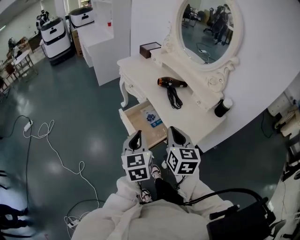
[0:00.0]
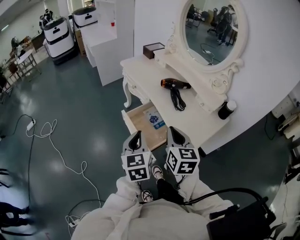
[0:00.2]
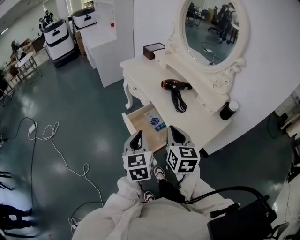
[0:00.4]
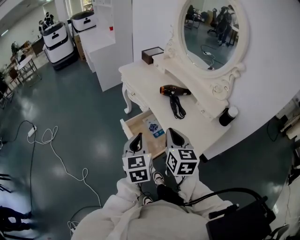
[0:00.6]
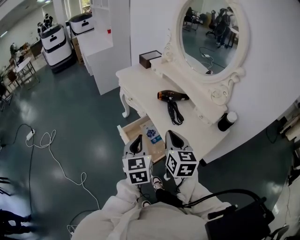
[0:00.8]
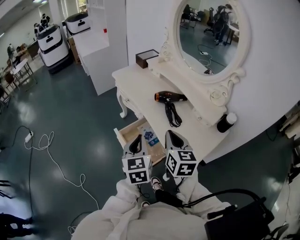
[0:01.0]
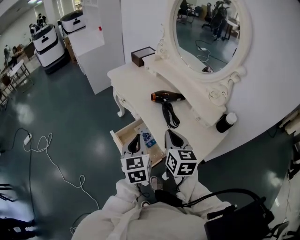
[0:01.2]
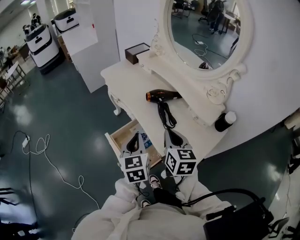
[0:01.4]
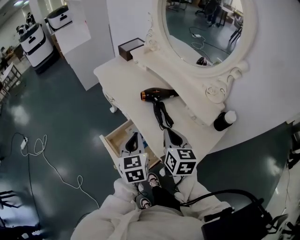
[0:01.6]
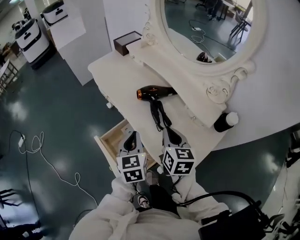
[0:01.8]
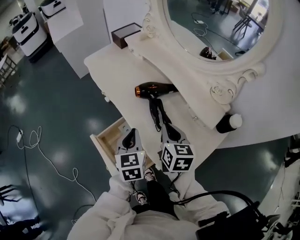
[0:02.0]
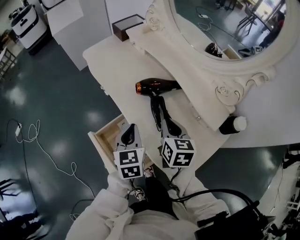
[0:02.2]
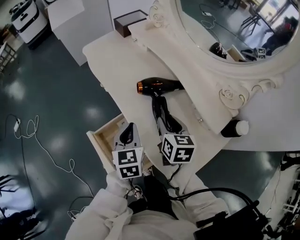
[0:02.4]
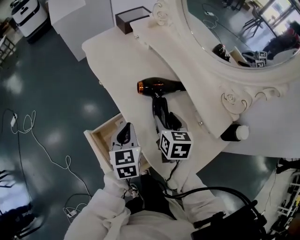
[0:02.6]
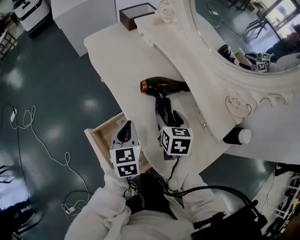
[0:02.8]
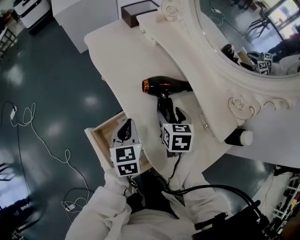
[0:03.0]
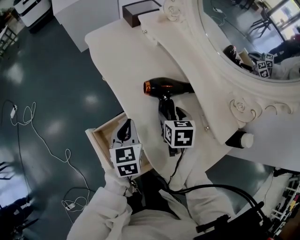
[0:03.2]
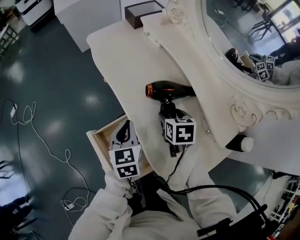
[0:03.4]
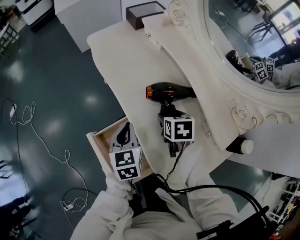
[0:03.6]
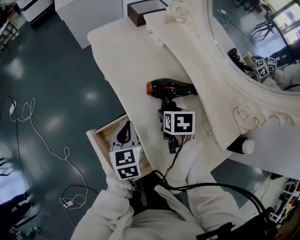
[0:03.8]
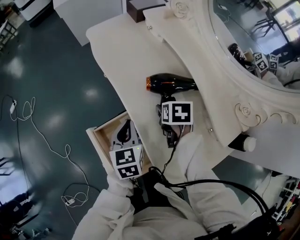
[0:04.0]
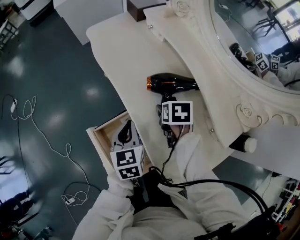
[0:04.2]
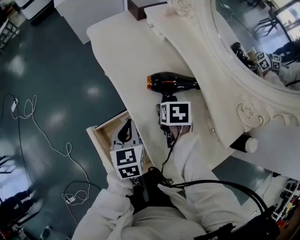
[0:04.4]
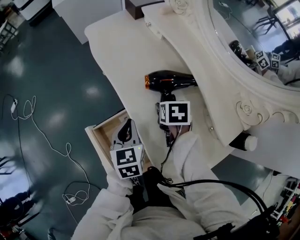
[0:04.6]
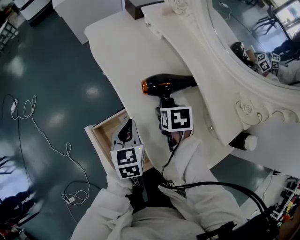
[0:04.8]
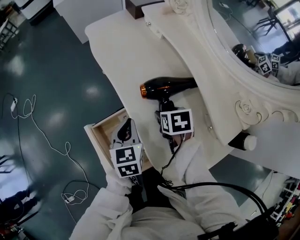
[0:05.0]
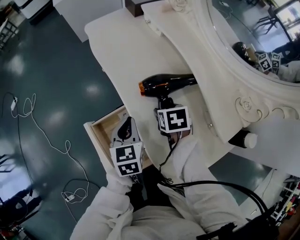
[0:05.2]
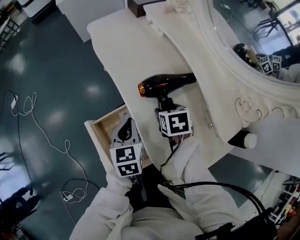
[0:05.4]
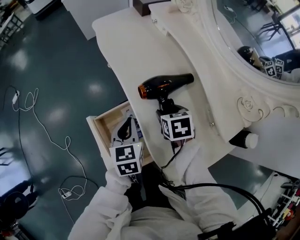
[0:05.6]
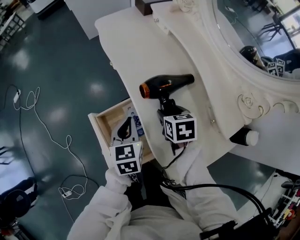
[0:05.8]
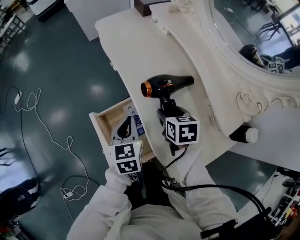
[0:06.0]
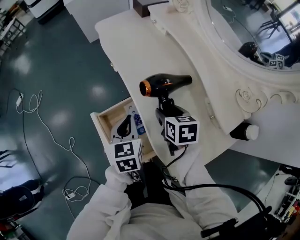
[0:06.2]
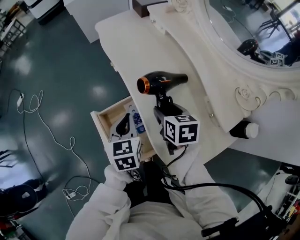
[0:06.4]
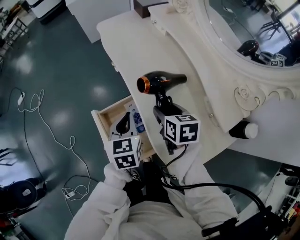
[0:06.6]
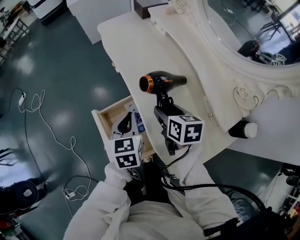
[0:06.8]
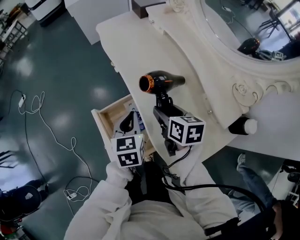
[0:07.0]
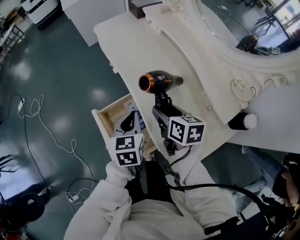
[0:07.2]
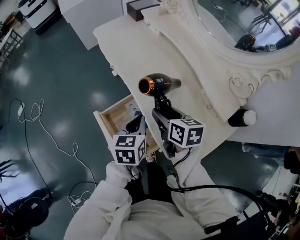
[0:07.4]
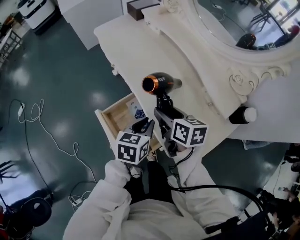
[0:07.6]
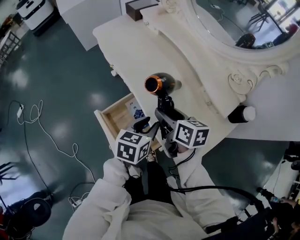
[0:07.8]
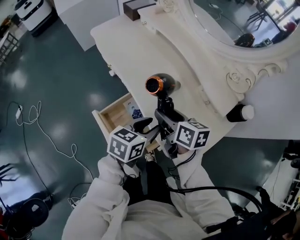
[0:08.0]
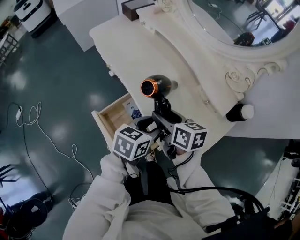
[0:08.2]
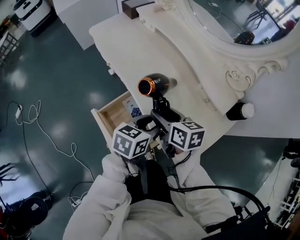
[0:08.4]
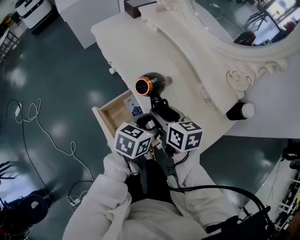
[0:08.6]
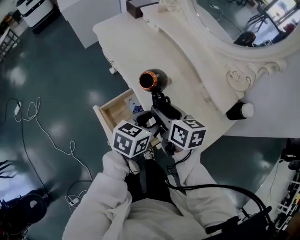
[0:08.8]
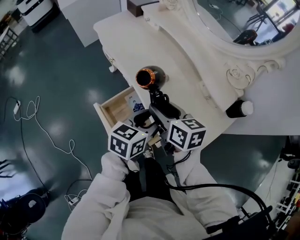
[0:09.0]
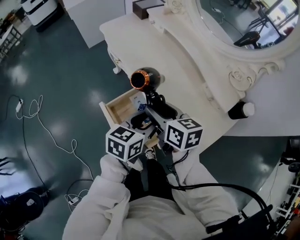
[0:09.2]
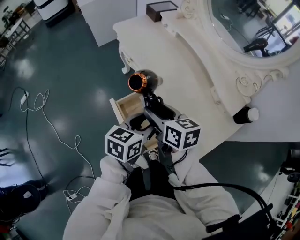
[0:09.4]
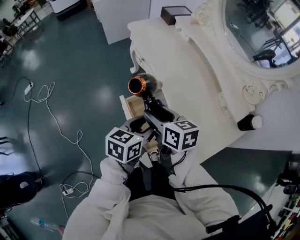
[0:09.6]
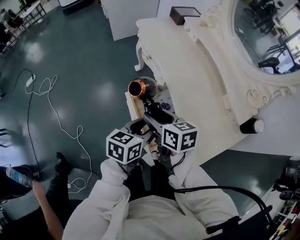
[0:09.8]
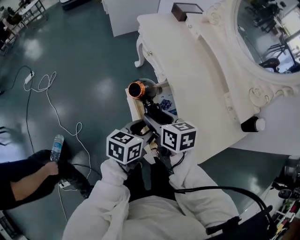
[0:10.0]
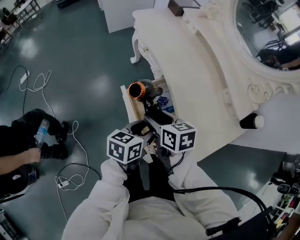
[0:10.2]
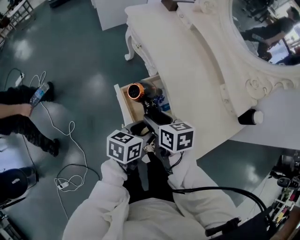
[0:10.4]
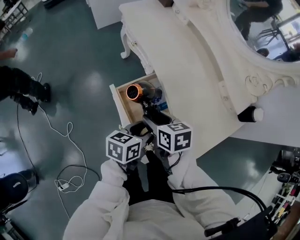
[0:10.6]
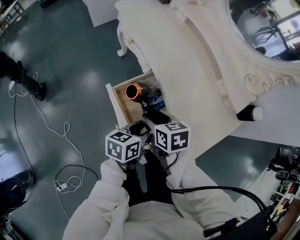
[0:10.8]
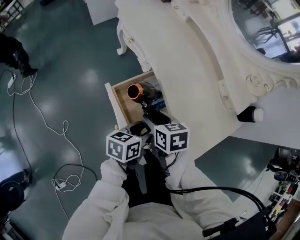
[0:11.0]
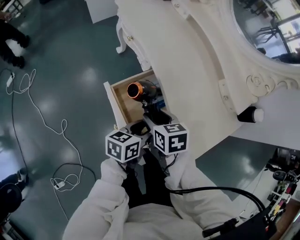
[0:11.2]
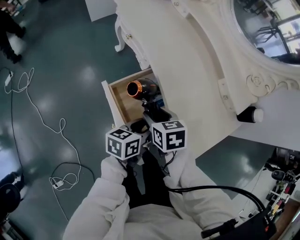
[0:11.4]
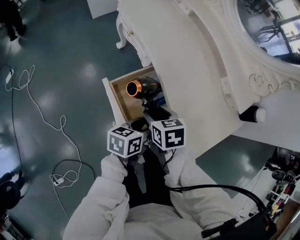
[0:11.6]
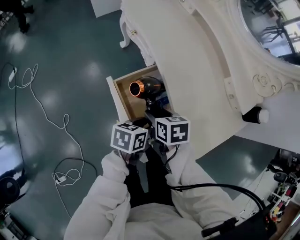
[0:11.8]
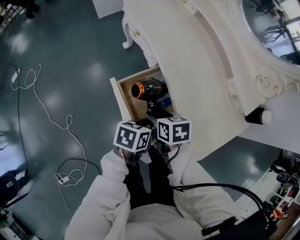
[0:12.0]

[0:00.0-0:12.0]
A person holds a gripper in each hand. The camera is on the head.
0:00.0 to 0:01.6: The two grippers go roughly 20 cm forward and to the right.
0:01.6 to 0:03.0: Both grippers move forward and downward, about 20 cm. The right gripper changes its angle by approximately 20 degrees, and opens up.
0:03.0 to 0:04.4: The right gripper shifts by some 5 cm, and turns by about 20 degrees.
0:04.4 to 0:06.0: Both grippers move backward, about 5 cm.
0:06.0 to 0:07.6: The left gripper heads backward and to the right, covering roughly 10 cm, and turns by approximately 30 degrees. The right gripper moves upward, approximately 5 cm, and changes its angle by about 20 degrees.
0:07.6 to 0:09.0: The right gripper moves some 5 cm; the left gripper ends up some 5 cm from where it was, and opens its fingers.
0:09.0 to 0:10.4: Both grippers travel together to the left, backward and downward, approximately 15 cm.
0:10.4 to 0:12.0: The grippers both shift downward by approximately 10 cm.

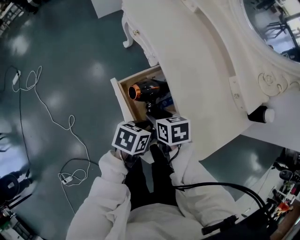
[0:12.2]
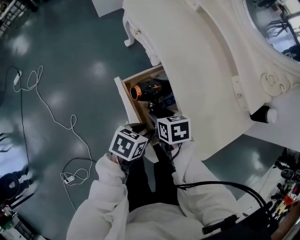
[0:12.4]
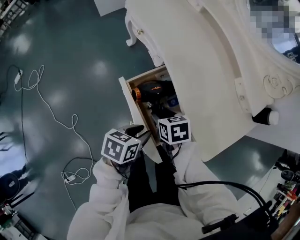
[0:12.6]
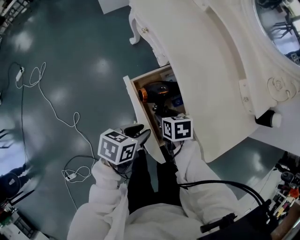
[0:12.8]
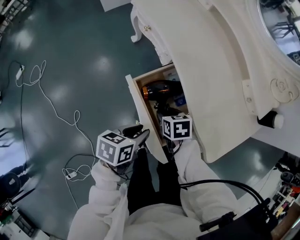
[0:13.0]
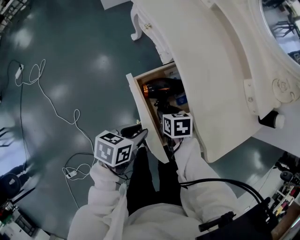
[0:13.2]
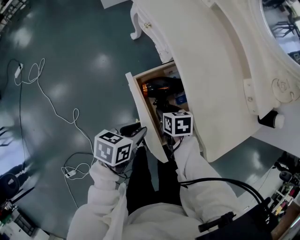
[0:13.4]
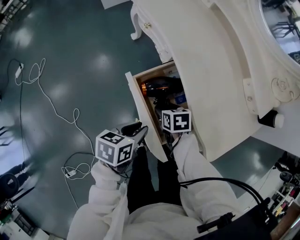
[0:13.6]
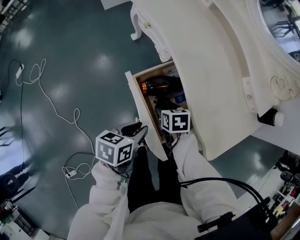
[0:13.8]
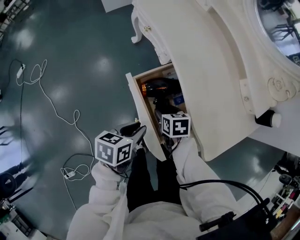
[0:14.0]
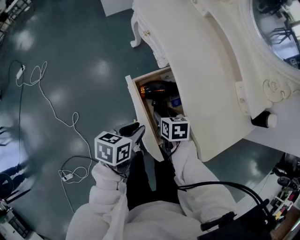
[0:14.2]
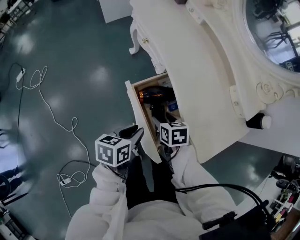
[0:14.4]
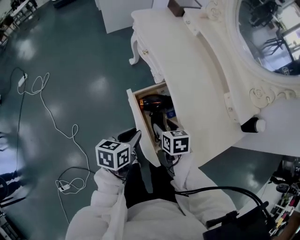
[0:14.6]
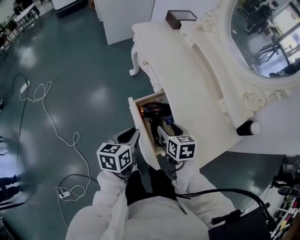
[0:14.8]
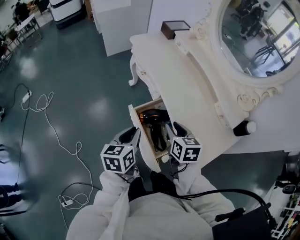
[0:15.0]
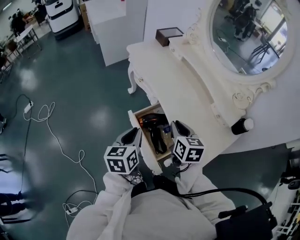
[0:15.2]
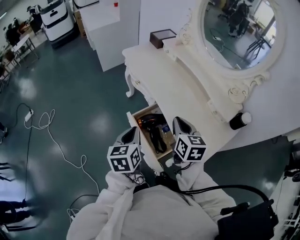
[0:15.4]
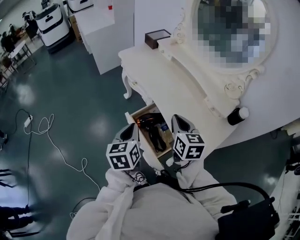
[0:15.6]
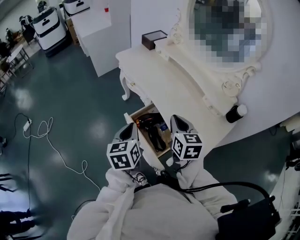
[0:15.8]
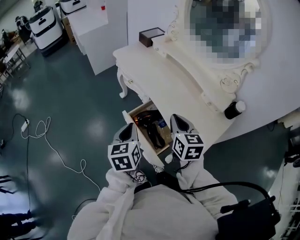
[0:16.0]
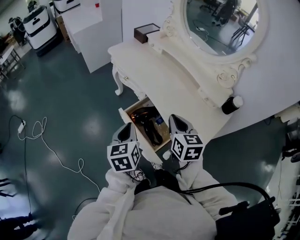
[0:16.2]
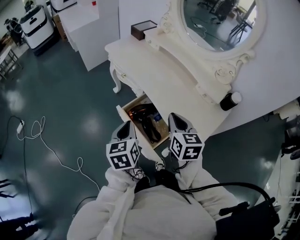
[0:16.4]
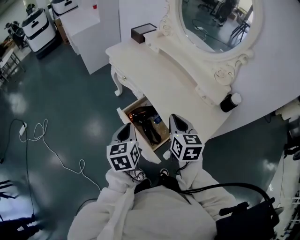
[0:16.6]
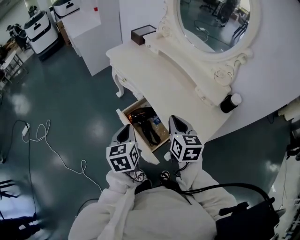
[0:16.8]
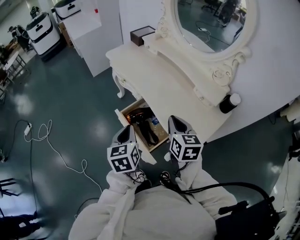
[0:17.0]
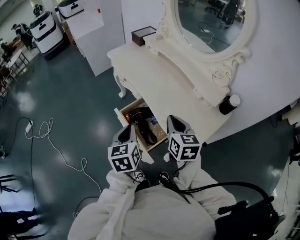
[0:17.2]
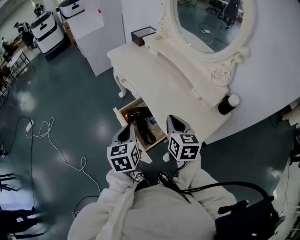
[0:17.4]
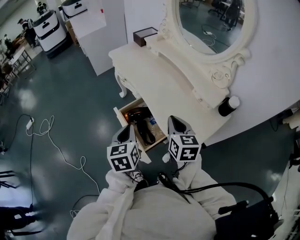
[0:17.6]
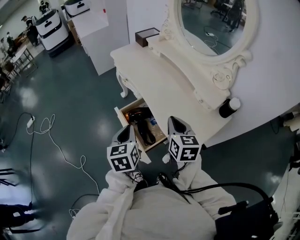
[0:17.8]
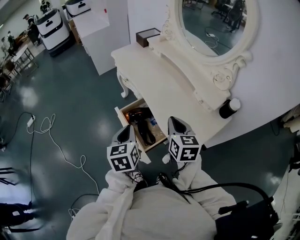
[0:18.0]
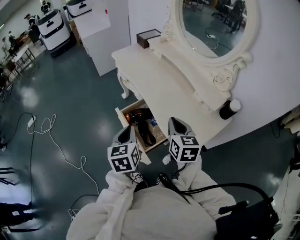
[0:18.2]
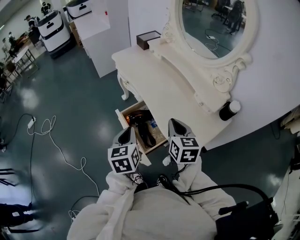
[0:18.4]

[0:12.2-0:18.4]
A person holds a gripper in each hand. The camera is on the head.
0:12.2 to 0:13.8: The right gripper goes approximately 10 cm downward, while the left gripper goes roughly 10 cm to the left.
0:13.8 to 0:15.4: The right gripper moves upward, some 30 cm, angles its fingers upward, by roughly 40 degrees, and closes up. Meanwhile the left gripper goes some 20 cm upward, changes its angle by roughly 40 degrees, and closes.
0:15.4 to 0:16.8: The right gripper moves roughly 5 cm.
0:16.8 to 0:18.4: There are only small adjustments of the grippers.

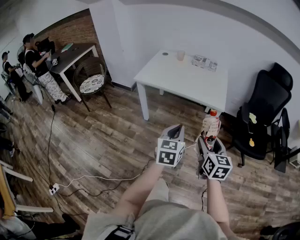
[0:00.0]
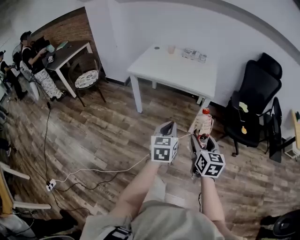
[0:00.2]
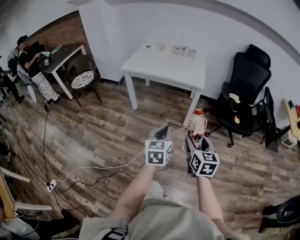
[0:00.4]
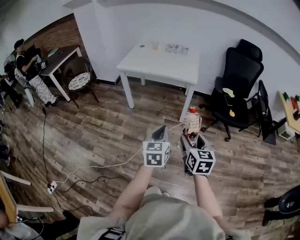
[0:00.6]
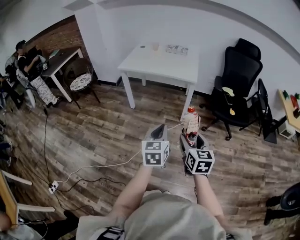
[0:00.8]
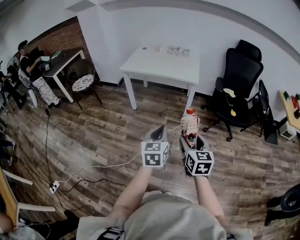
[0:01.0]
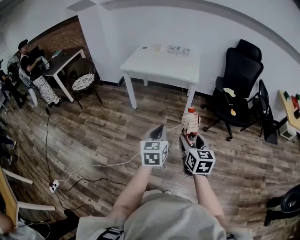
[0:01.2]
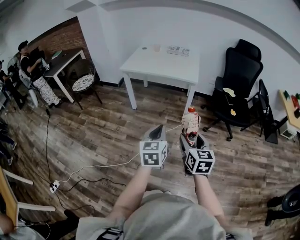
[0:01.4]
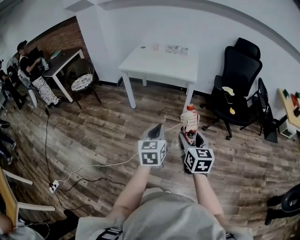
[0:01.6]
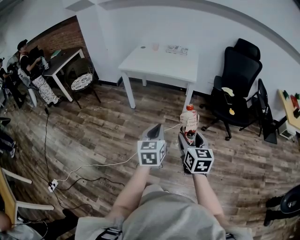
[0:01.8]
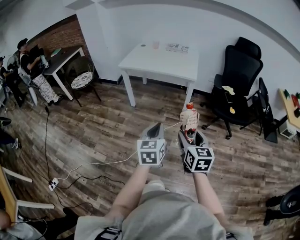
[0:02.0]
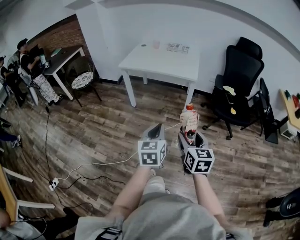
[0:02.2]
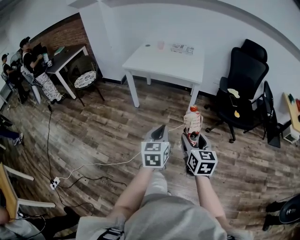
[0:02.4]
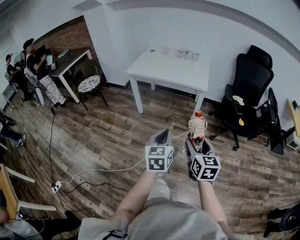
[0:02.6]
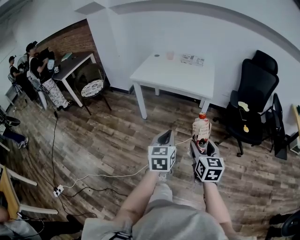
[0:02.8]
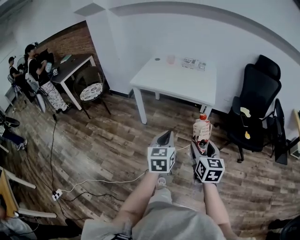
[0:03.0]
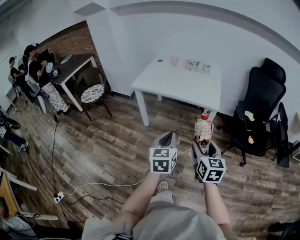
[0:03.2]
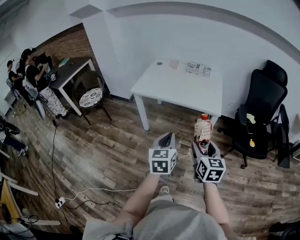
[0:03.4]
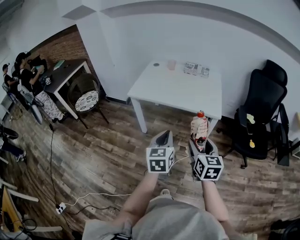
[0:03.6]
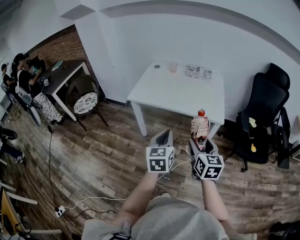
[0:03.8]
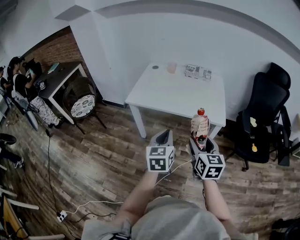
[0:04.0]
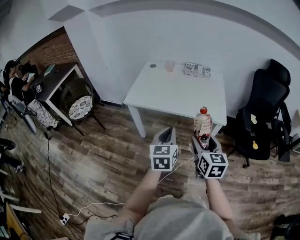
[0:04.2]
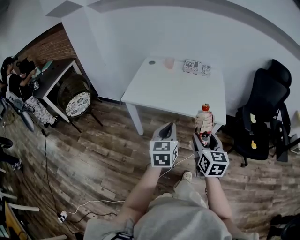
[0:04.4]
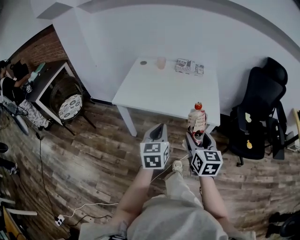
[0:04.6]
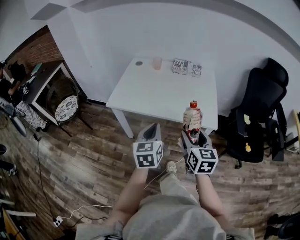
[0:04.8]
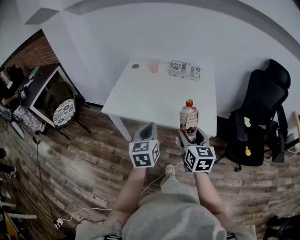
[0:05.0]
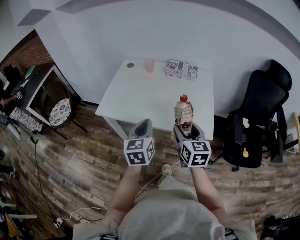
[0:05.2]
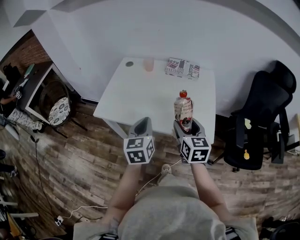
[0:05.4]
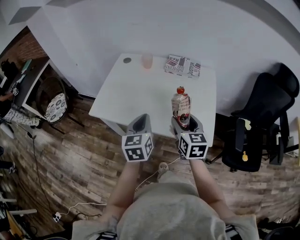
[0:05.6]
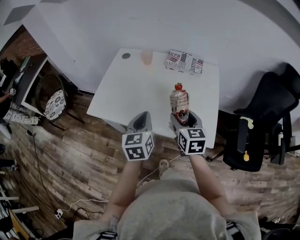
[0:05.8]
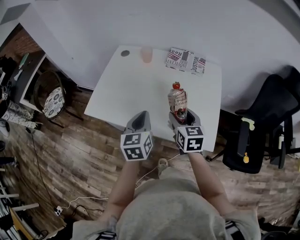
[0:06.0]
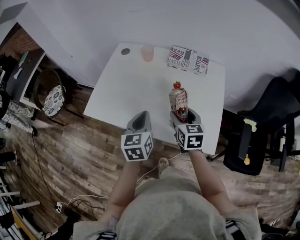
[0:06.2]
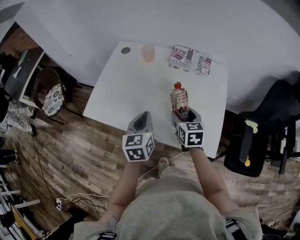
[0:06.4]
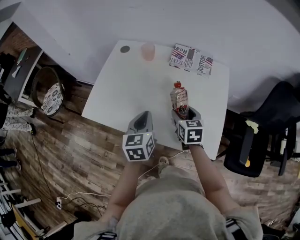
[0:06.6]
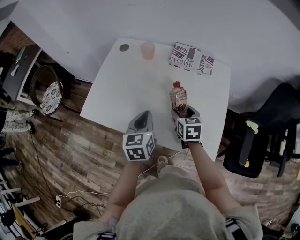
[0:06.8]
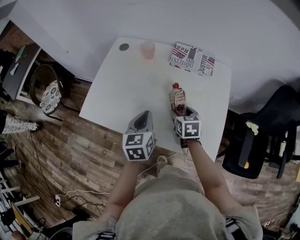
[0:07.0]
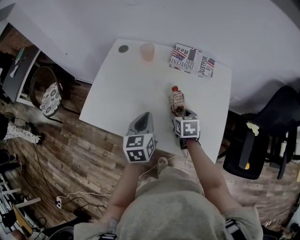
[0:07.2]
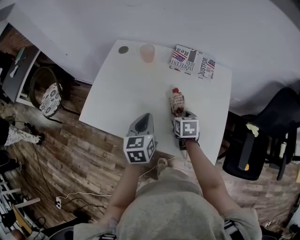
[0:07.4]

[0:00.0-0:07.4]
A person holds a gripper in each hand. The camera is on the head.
0:00.0 to 0:01.4: The grippers both shift backward by roughly 25 cm.
0:01.4 to 0:03.0: The grippers both shift forward by about 20 cm.
0:03.0 to 0:04.4: Both grippers travel together forward, roughly 30 cm.
0:04.4 to 0:06.0: Both grippers move forward, approximately 35 cm.
0:06.0 to 0:07.4: The right gripper goes about 15 cm downward and forward, and turns by approximately 20 degrees; the left gripper moves forward and downward, roughly 10 cm.
